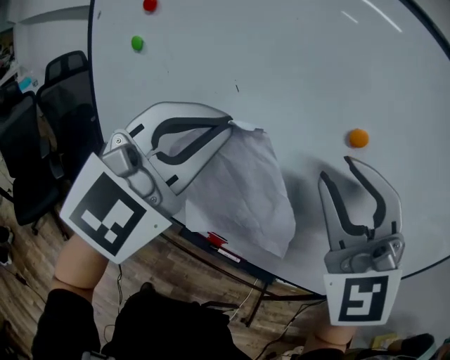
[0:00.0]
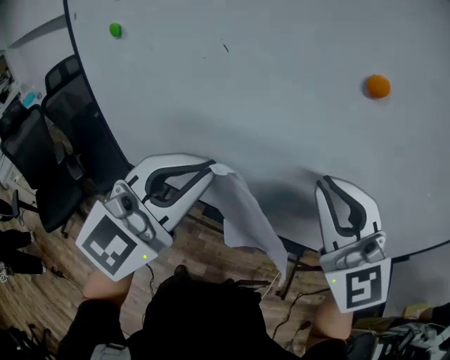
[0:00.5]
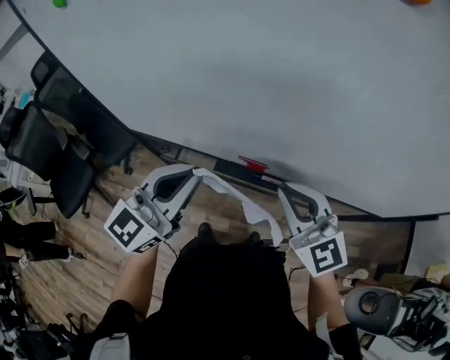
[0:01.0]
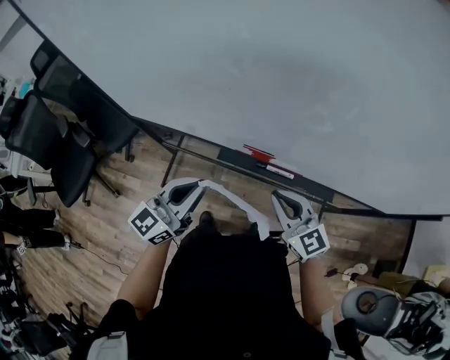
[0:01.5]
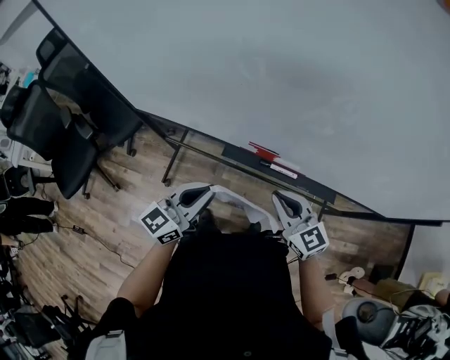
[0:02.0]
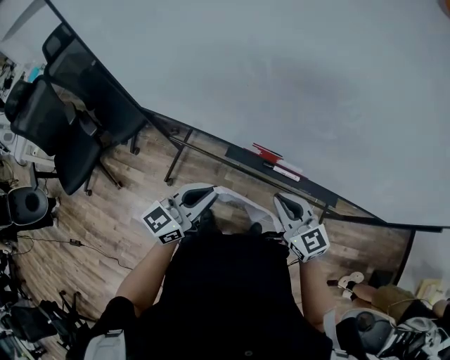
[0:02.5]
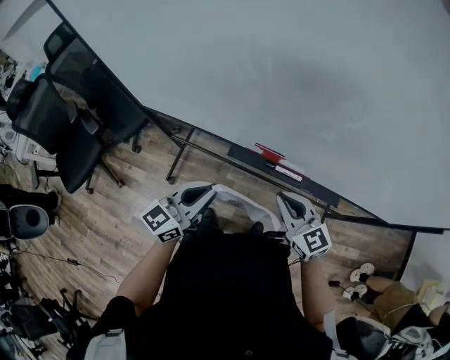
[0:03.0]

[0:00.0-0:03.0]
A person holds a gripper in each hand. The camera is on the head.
0:00.0 to 0:01.5: Both grippers travel together downward, about 40 cm. The right gripper twists about 60 degrees clockwise, seen from behind, and closes. Meanwhile the left gripper rolls counterclockwise, seen from behind, by approximately 50 degrees.
0:01.5 to 0:03.0: The grippers stay close to where they were, moving slightly.

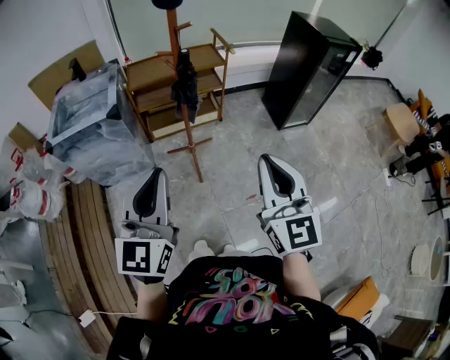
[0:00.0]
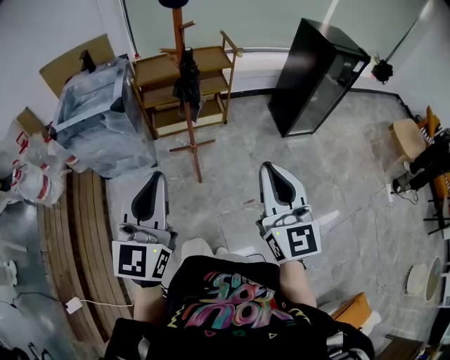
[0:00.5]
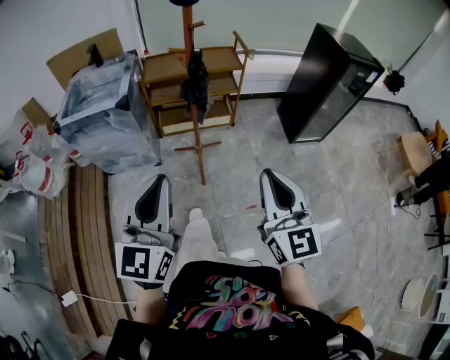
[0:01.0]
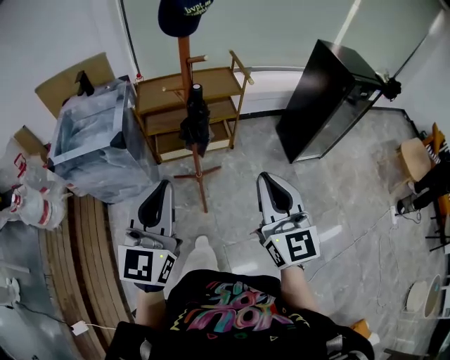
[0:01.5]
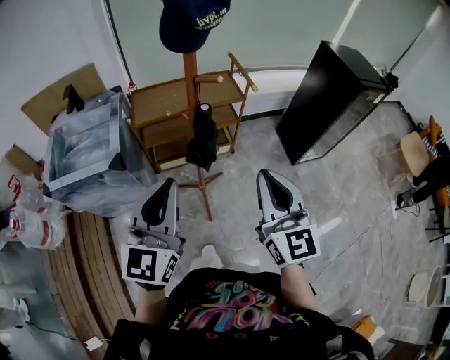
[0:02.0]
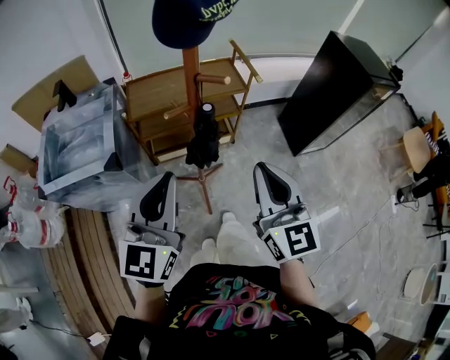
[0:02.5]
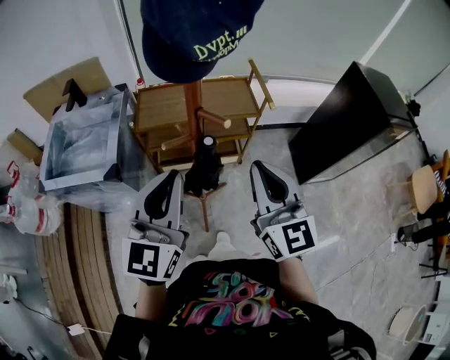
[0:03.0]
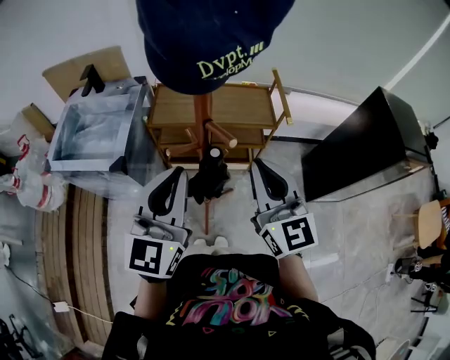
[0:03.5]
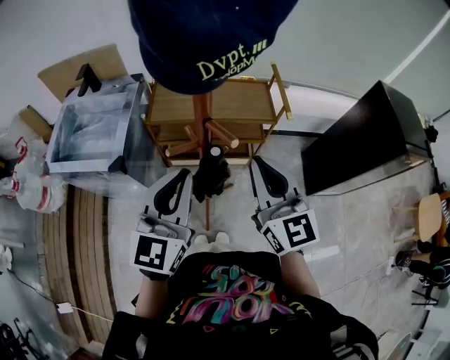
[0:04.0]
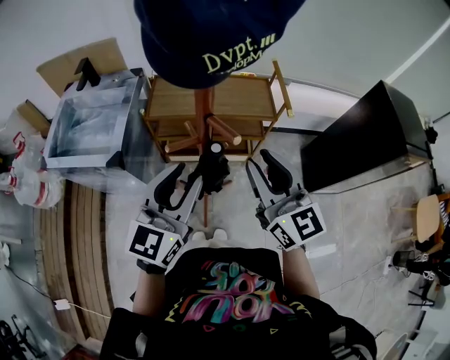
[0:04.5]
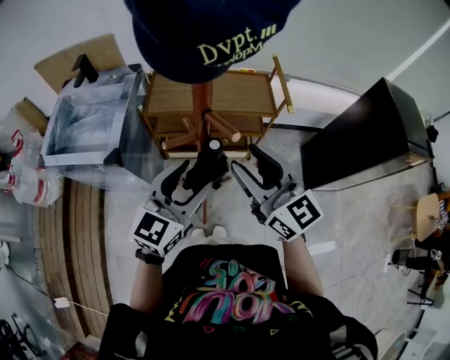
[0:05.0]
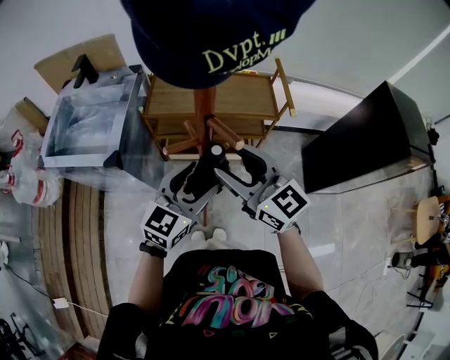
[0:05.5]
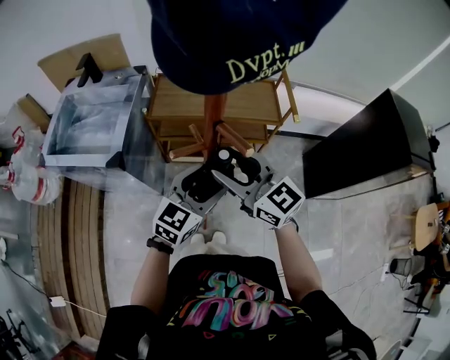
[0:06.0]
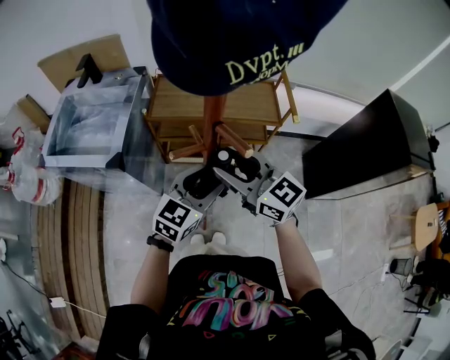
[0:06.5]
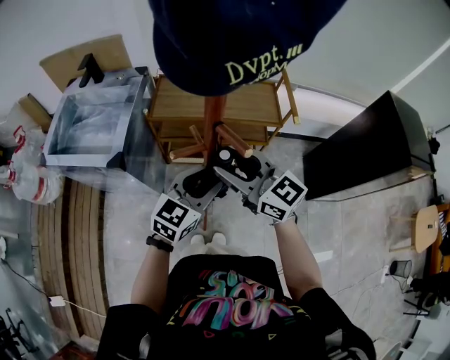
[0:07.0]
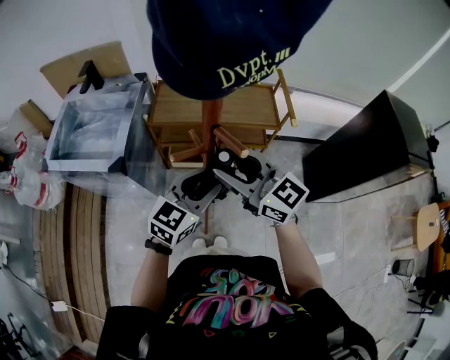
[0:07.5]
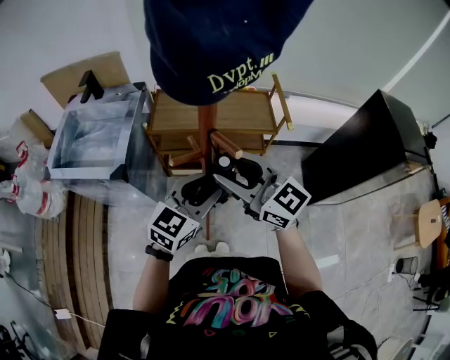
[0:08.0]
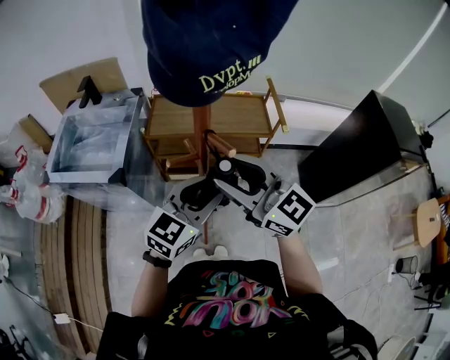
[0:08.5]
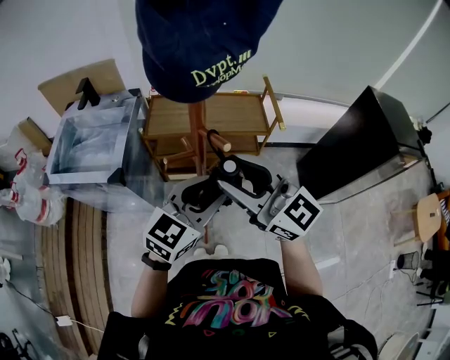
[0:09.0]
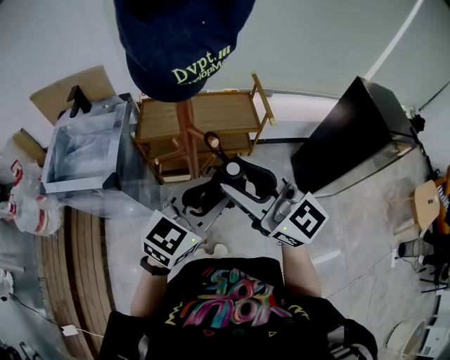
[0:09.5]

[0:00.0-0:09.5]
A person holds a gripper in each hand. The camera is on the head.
0:00.0 to 0:02.0: Both grippers travel together forward, roughly 30 cm.
0:02.0 to 0:04.0: Both grippers travel together forward, approximately 20 cm. The right gripper turns by roughly 20 degrees.
0:04.0 to 0:05.5: The left gripper moves downward, about 10 cm, swivels some 20 degrees, and opens. The right gripper is displaced to the left and downward by some 10 cm, turns by approximately 30 degrees, and opens.
0:05.5 to 0:07.5: The left gripper closes up.
0:07.5 to 0:09.5: The grippers both shift upward and backward by some 15 cm.

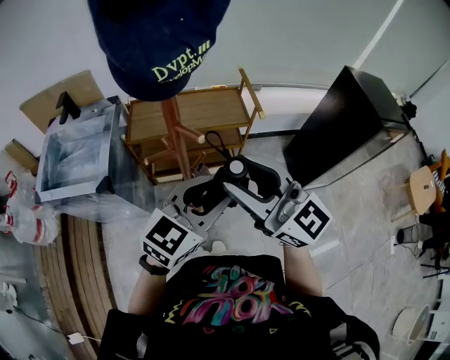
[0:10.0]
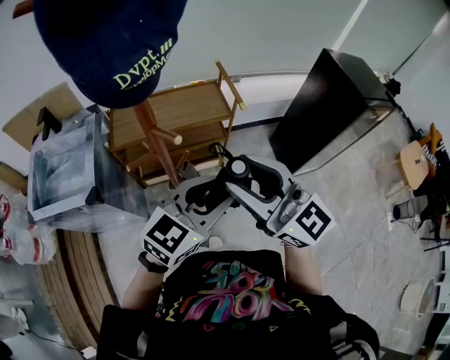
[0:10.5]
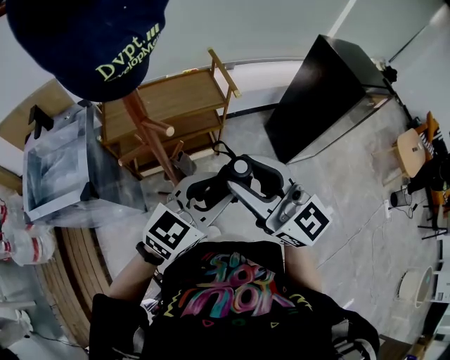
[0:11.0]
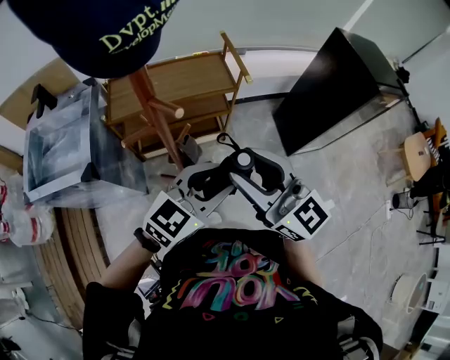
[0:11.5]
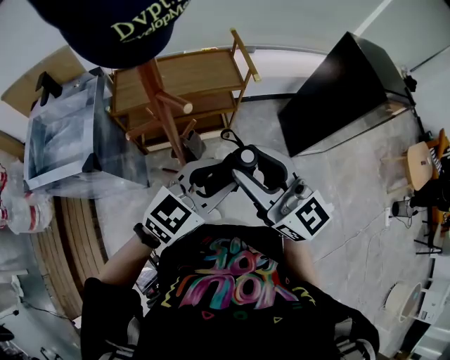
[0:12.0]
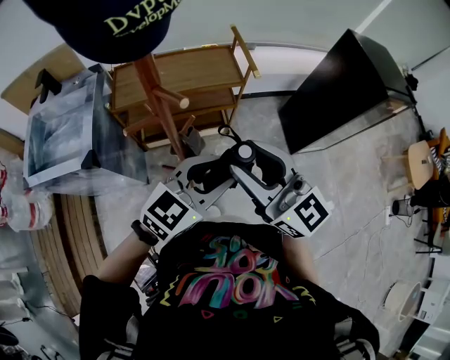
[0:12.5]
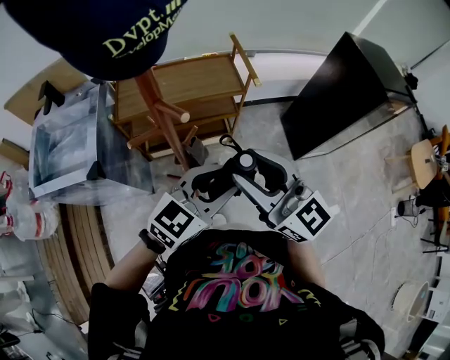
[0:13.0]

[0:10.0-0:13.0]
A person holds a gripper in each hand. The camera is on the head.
0:10.0 to 0:11.5: The grippers both shift downward by roughly 5 cm.
0:11.5 to 0:13.0: Neither gripper changes place.

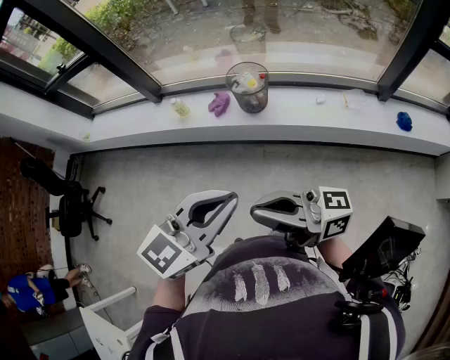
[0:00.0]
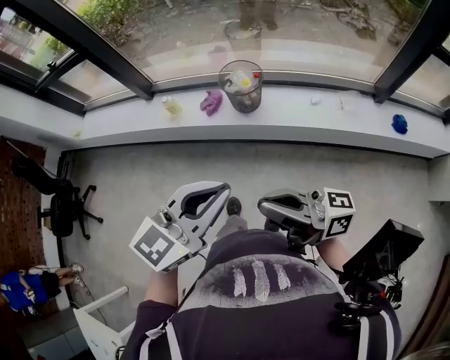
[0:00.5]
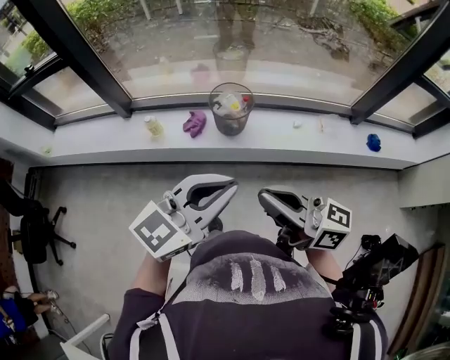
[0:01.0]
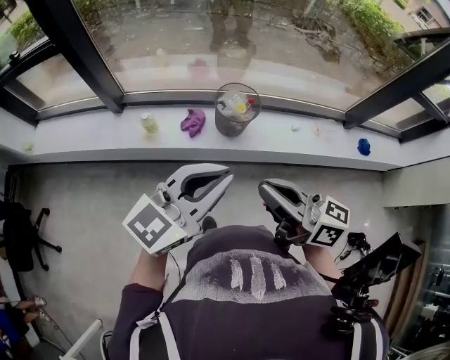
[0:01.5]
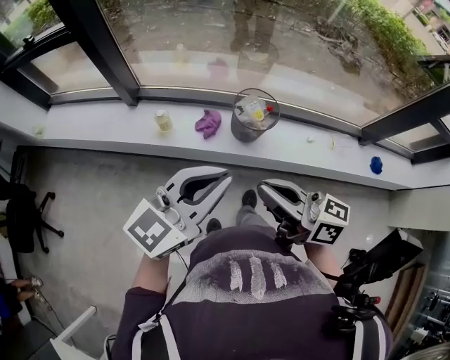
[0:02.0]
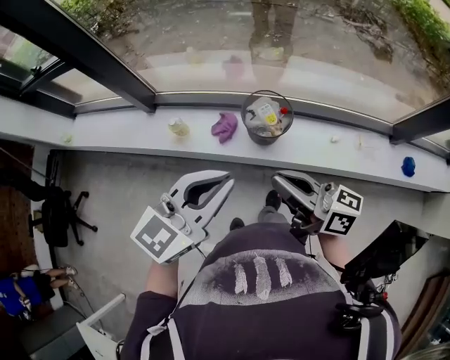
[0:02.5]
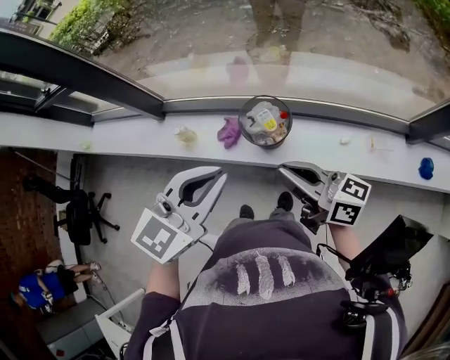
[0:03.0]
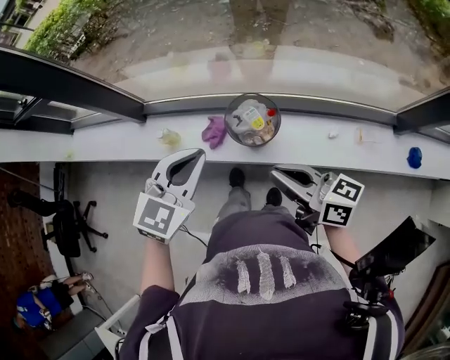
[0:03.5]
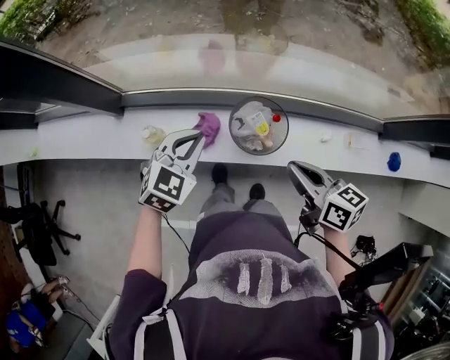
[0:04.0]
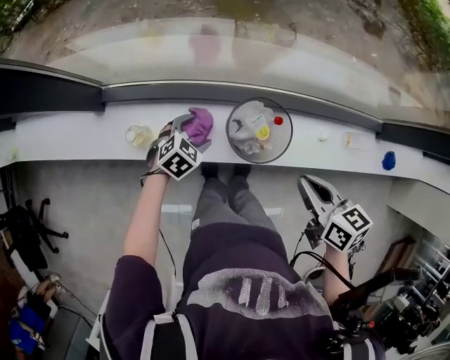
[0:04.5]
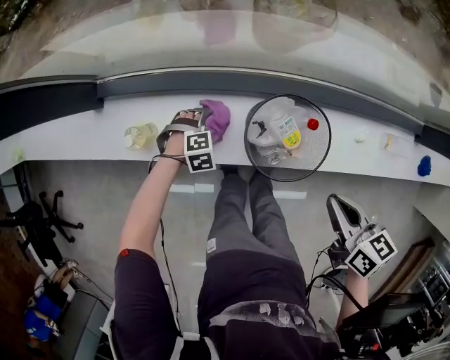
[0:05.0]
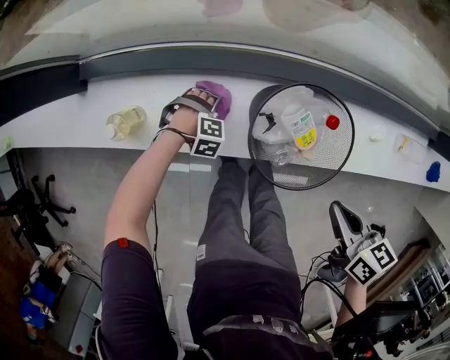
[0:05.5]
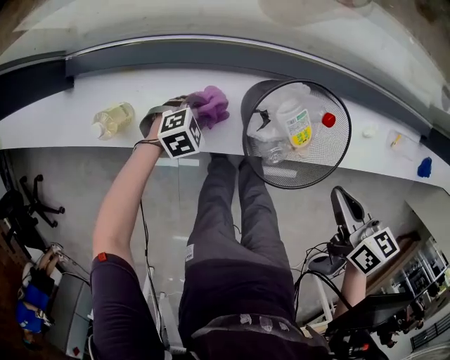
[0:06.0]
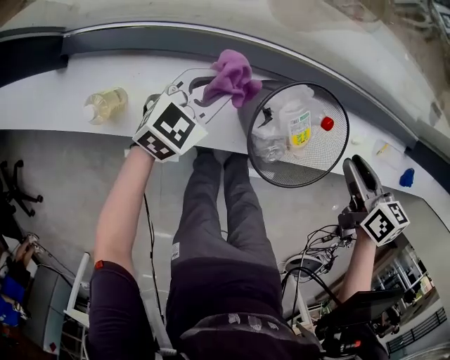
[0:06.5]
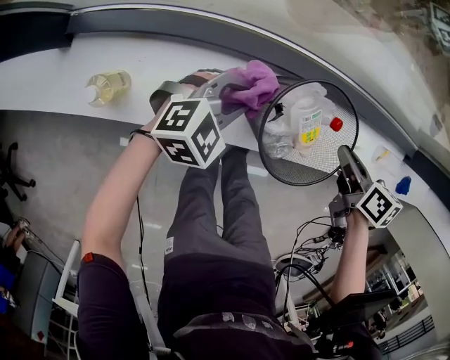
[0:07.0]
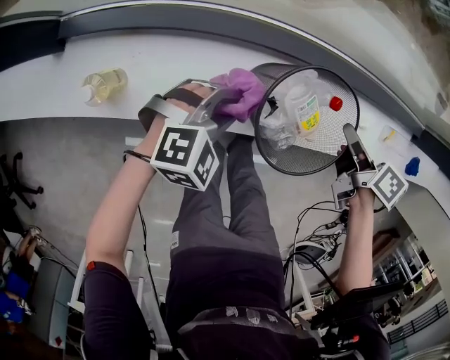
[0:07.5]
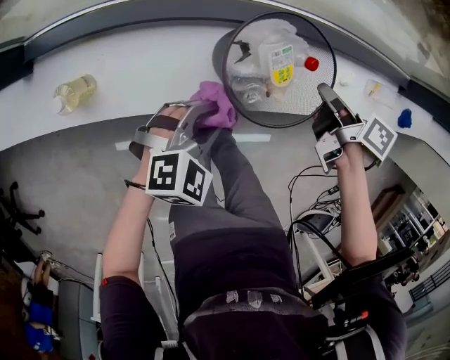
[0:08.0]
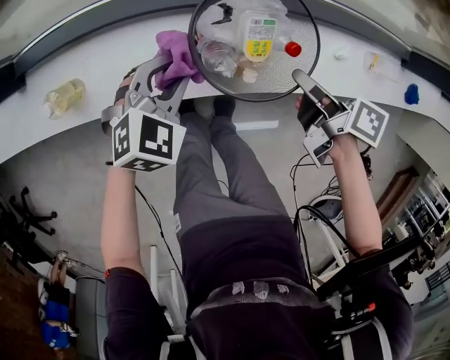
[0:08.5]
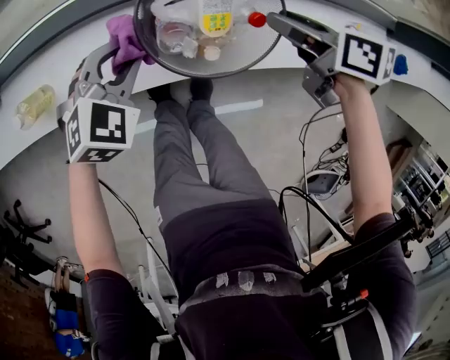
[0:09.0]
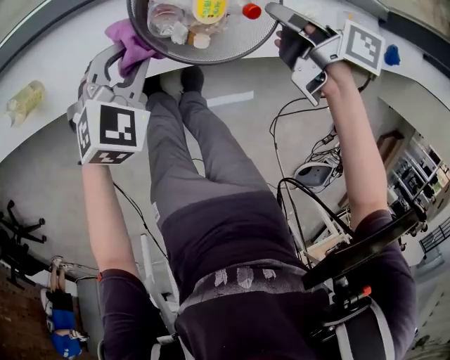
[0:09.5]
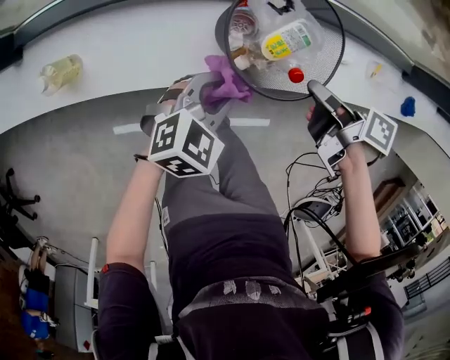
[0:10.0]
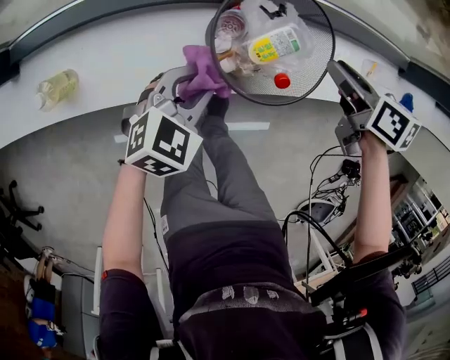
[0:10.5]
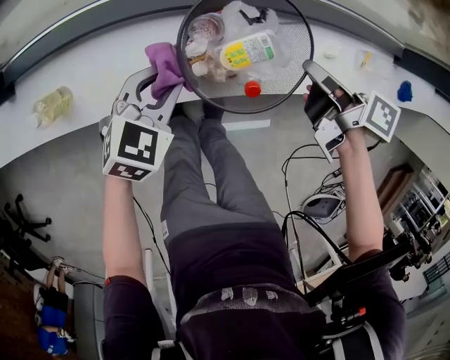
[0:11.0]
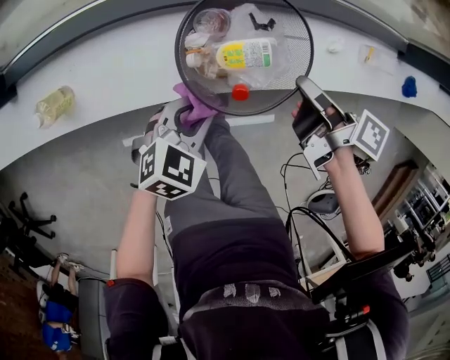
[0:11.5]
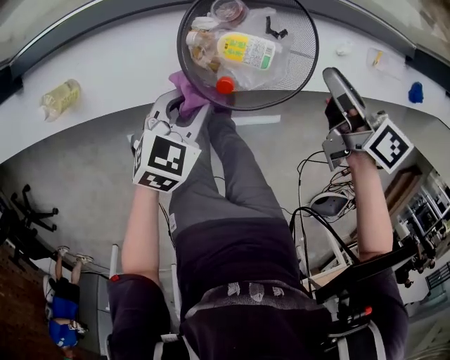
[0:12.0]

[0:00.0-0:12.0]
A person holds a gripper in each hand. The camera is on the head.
0:00.0 to 0:02.0: The two grippers go roughly 30 cm forward and to the left. The right gripper changes its angle by roughly 30 degrees.
0:02.0 to 0:04.0: The left gripper is displaced forward and downward by some 35 cm, and tips its fingers downward by roughly 40 degrees, while the right gripper is displaced forward, to the right and downward by about 30 cm, and swivels some 30 degrees.
0:04.0 to 0:06.0: The left gripper moves downward, roughly 40 cm, turns by some 40 degrees, and opens, then closes again. Meanwhile the right gripper goes some 20 cm downward, and swivels some 20 degrees.
0:06.0 to 0:08.0: The right gripper goes some 10 cm downward, and changes its angle by some 40 degrees. The left gripper heads upward, covering some 15 cm, and swivels roughly 20 degrees.
0:08.0 to 0:10.0: The left gripper moves roughly 5 cm, while the right gripper ends up about 5 cm from where it was, and opens, then closes again.
0:10.0 to 0:12.0: The right gripper moves forward and backward over roughly 10 cm, changing direction 2 times, and swivels some 30 degrees.
